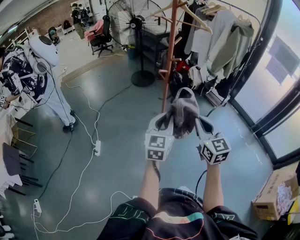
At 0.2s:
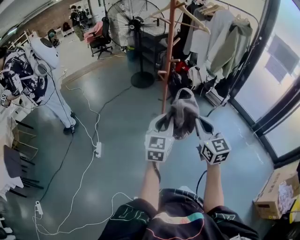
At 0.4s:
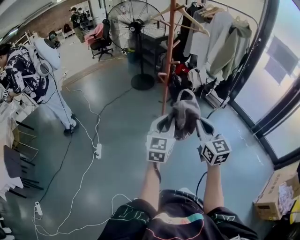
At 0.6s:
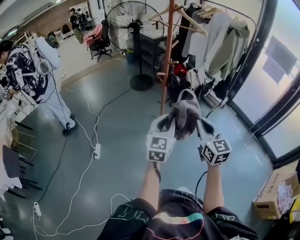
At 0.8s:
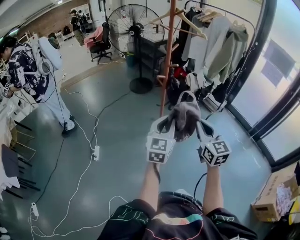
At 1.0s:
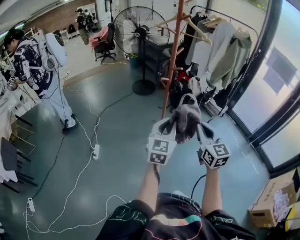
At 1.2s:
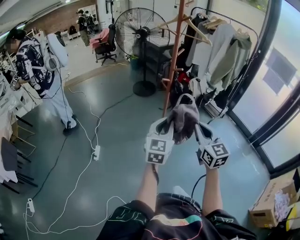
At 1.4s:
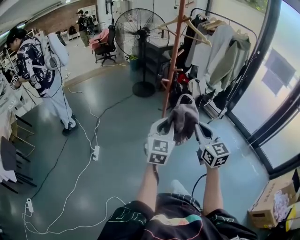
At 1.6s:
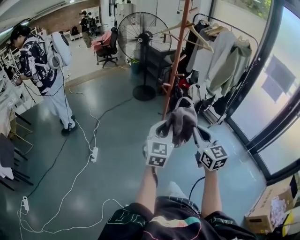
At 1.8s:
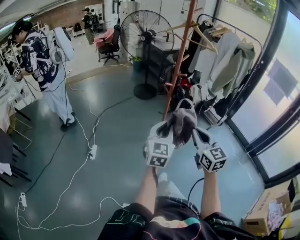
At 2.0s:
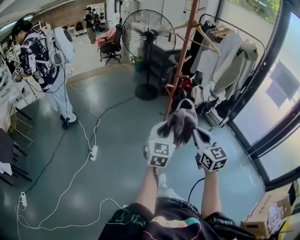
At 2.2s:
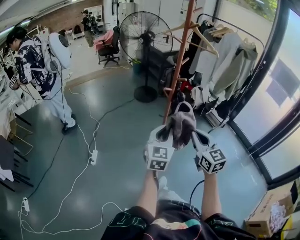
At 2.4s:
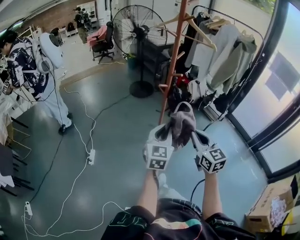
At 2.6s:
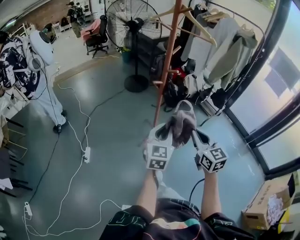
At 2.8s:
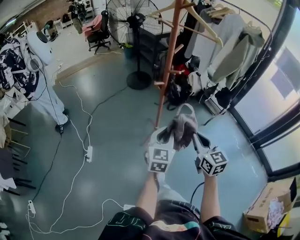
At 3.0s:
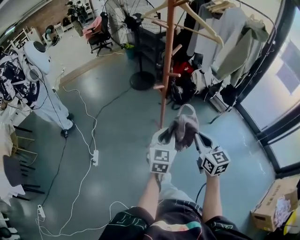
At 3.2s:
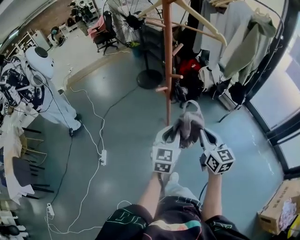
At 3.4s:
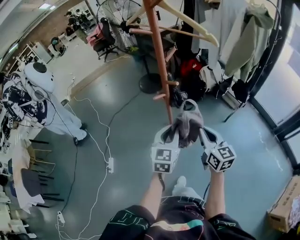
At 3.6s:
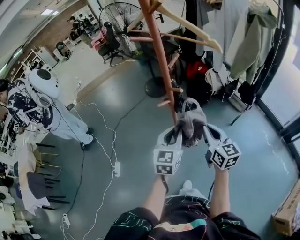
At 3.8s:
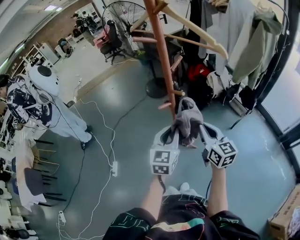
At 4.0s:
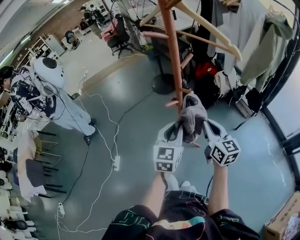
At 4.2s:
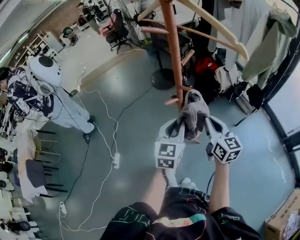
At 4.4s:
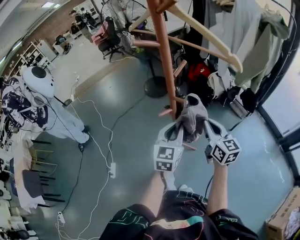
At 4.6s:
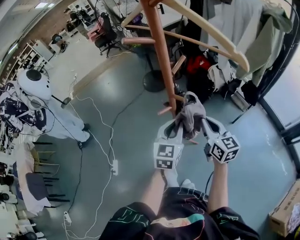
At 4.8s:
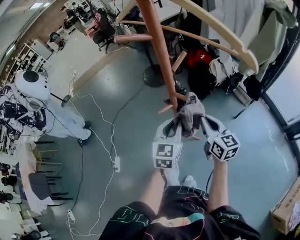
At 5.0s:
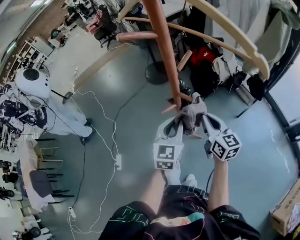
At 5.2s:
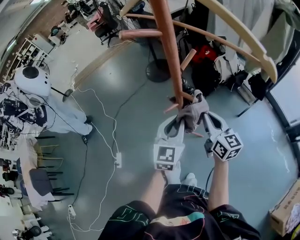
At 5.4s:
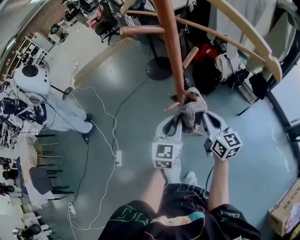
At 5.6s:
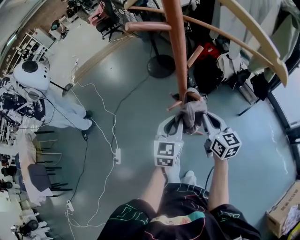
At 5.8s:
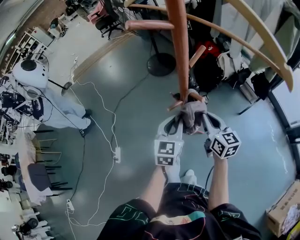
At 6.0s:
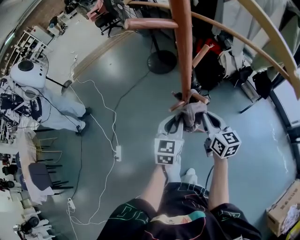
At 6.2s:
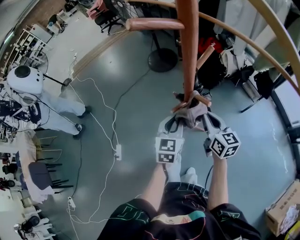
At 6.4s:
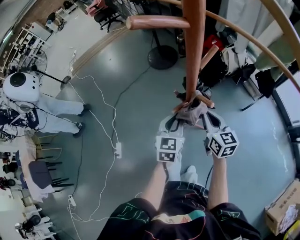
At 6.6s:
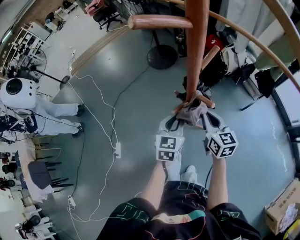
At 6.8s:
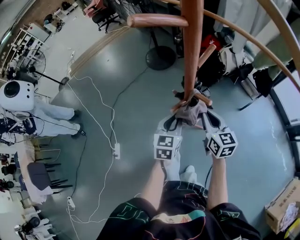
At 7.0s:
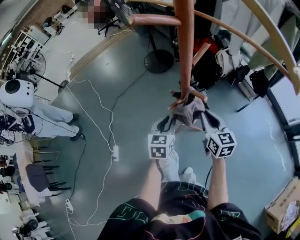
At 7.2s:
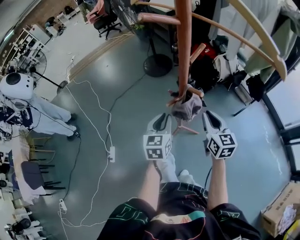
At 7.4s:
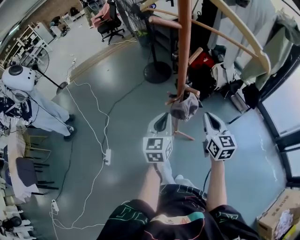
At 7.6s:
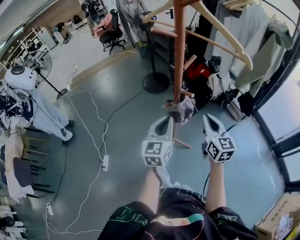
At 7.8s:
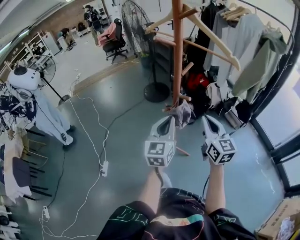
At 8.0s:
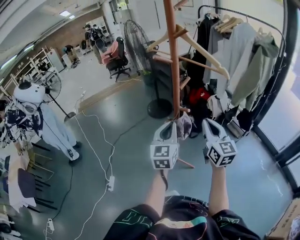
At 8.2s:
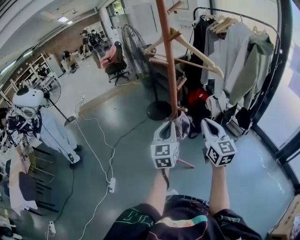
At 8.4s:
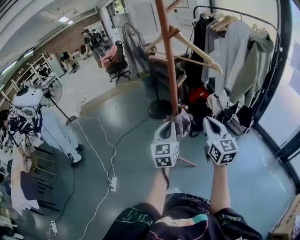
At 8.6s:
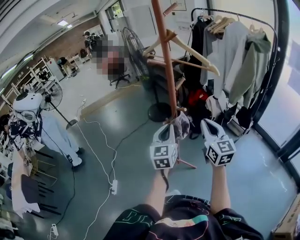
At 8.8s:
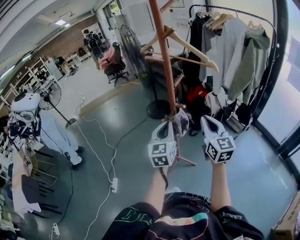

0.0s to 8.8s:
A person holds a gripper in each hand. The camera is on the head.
0.0s to 1.4s: The grippers move only a little.
1.4s to 3.0s: Both grippers move forward and downward, about 20 cm.
3.0s to 4.4s: Both grippers move forward, about 20 cm.
4.4s to 5.8s: Both grippers travel together downward and to the left, about 10 cm.
5.8s to 7.4s: The right gripper shifts by roughly 5 cm; the left gripper ends up approximately 5 cm from where it was.
7.4s to 8.8s: The left gripper moves upward, about 10 cm. Meanwhile the right gripper moves upward and backward, roughly 15 cm.

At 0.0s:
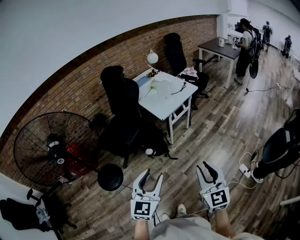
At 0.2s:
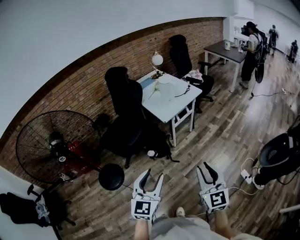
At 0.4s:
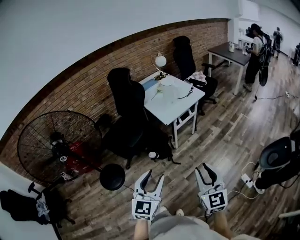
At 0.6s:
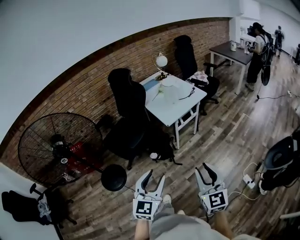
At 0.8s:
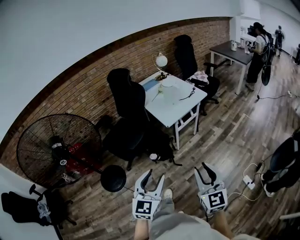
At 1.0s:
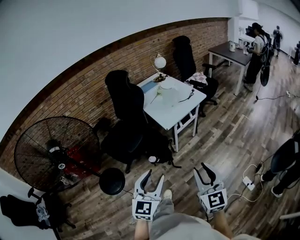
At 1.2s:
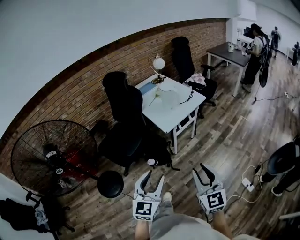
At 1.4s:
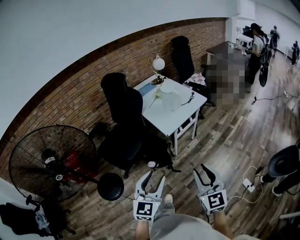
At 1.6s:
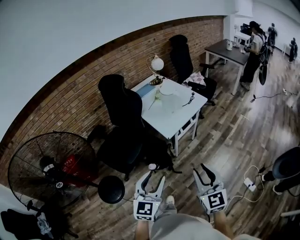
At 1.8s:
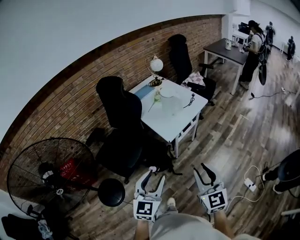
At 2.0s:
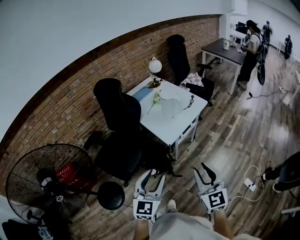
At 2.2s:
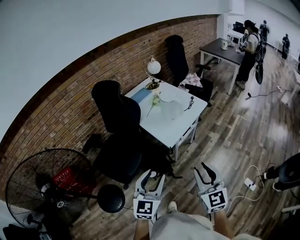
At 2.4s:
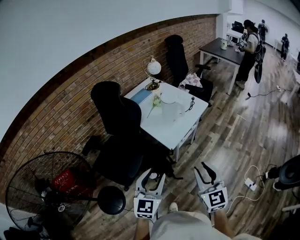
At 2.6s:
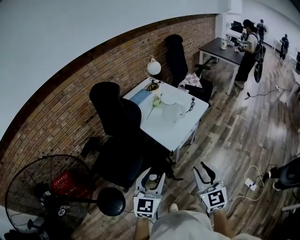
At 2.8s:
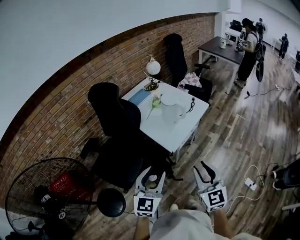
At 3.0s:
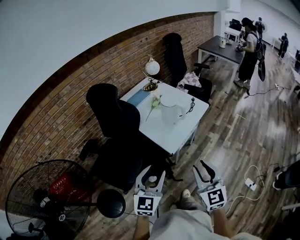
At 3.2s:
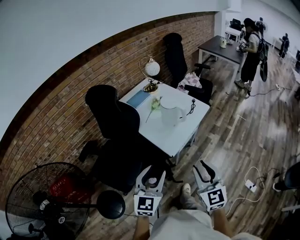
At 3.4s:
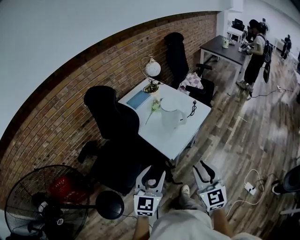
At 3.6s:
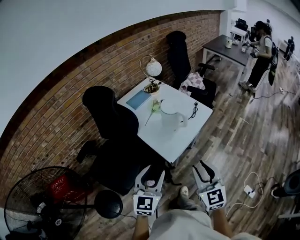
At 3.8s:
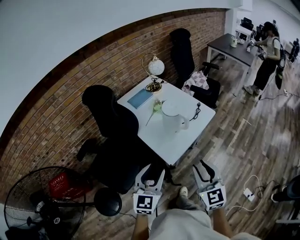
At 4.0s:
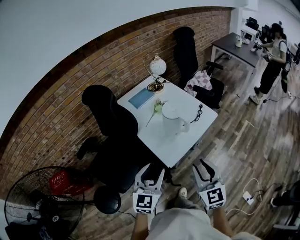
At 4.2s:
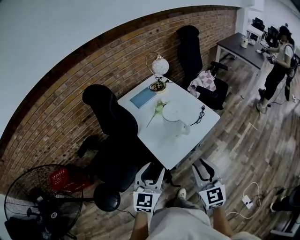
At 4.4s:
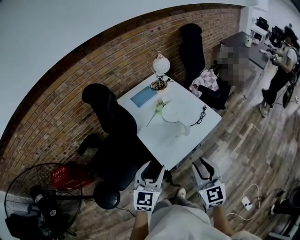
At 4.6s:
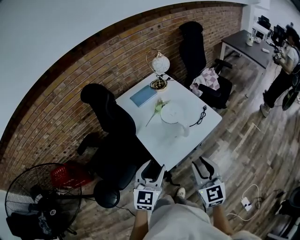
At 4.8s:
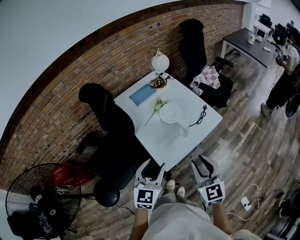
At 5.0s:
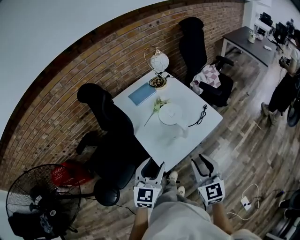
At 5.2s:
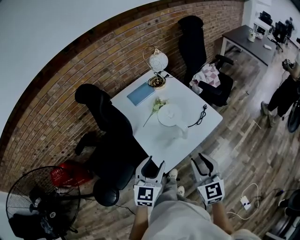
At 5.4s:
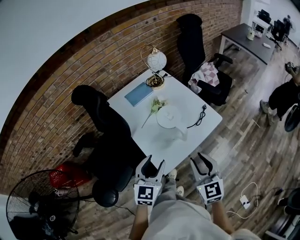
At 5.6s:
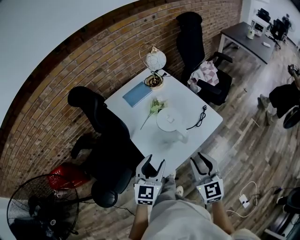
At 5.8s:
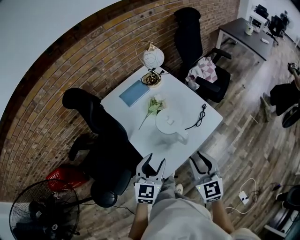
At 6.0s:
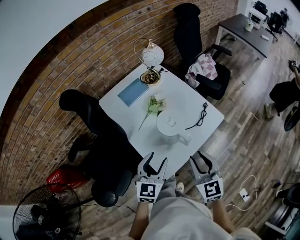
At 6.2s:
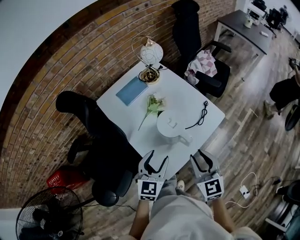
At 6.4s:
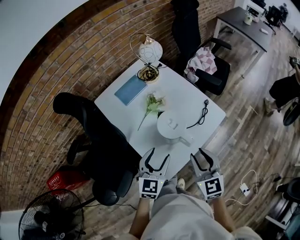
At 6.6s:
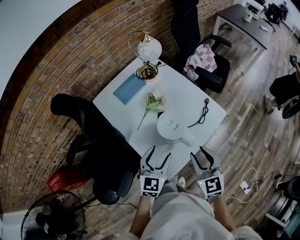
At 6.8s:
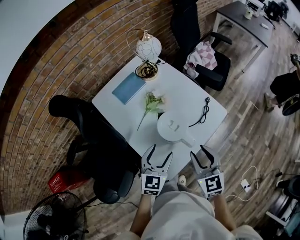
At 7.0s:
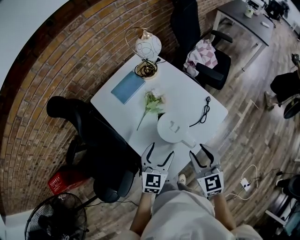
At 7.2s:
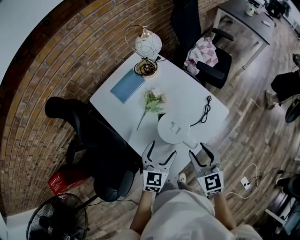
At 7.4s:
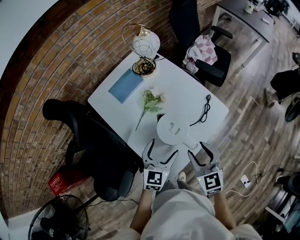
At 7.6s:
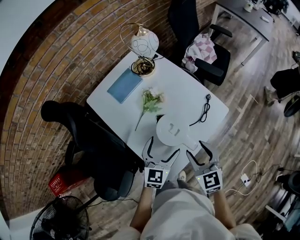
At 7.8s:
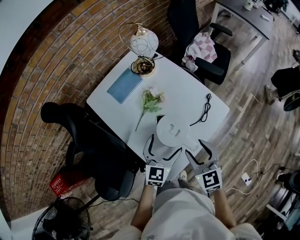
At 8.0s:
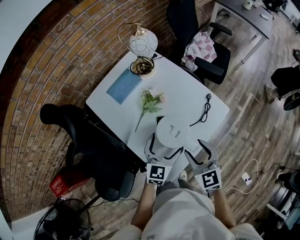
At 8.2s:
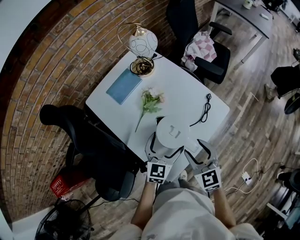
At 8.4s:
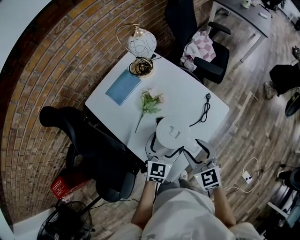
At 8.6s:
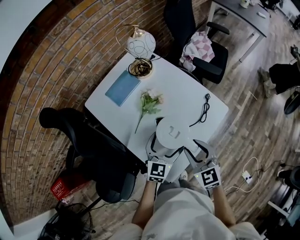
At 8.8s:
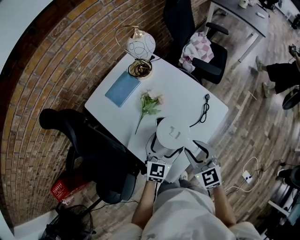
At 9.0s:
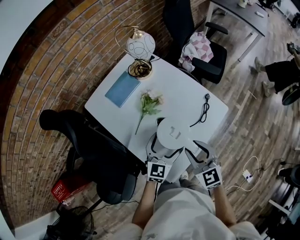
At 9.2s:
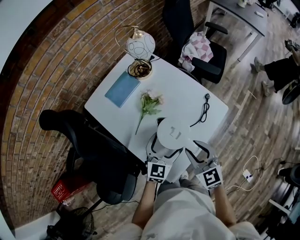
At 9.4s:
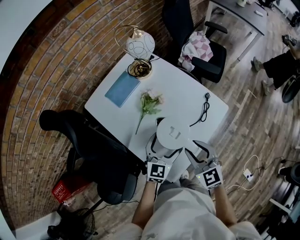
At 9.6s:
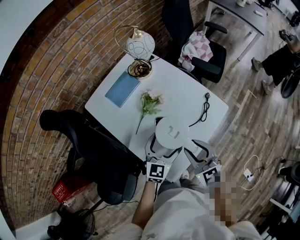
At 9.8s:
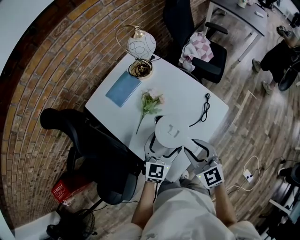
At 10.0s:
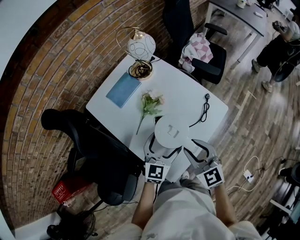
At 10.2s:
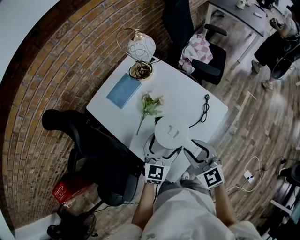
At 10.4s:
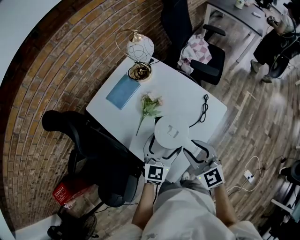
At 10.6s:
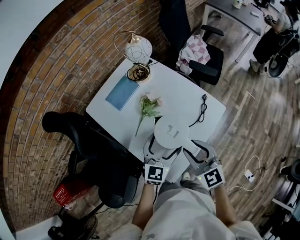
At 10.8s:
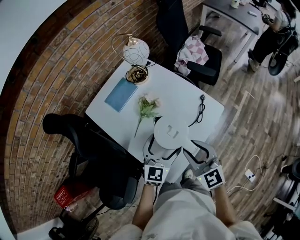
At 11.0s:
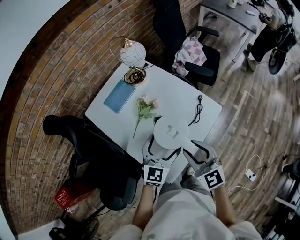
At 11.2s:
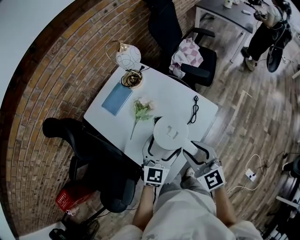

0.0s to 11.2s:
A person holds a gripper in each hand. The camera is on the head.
0.0s to 1.6s: Both grippers travel together forward, approximately 20 cm.
1.6s to 3.2s: The two grippers go approximately 20 cm forward.
3.2s to 4.8s: Both grippers travel together forward and to the right, roughly 20 cm.
4.8s to 6.4s: Both grippers move forward and downward, some 20 cm.
6.4s to 8.0s: Both grippers move forward and downward, roughly 10 cm. The left gripper opens its fingers, while the right gripper opens up.
8.0s to 9.6s: The grippers make only small movements.
9.6s to 11.2s: Both grippers move upward, roughly 5 cm.

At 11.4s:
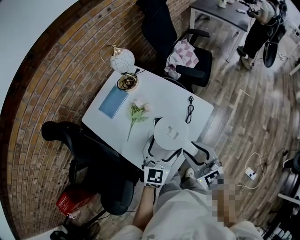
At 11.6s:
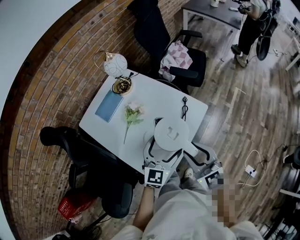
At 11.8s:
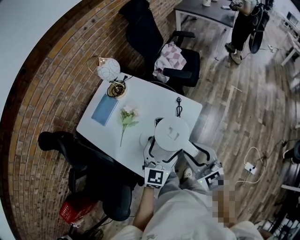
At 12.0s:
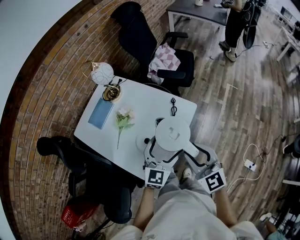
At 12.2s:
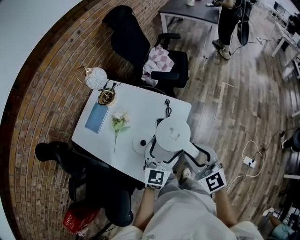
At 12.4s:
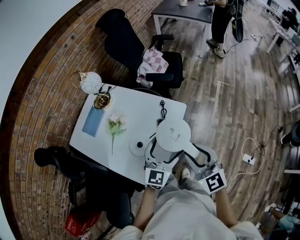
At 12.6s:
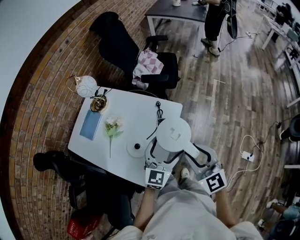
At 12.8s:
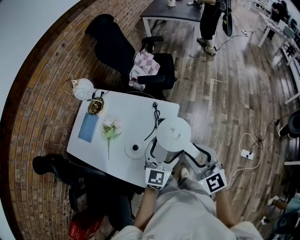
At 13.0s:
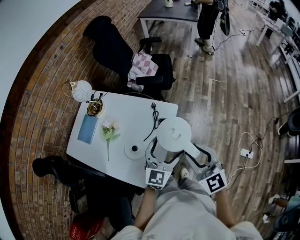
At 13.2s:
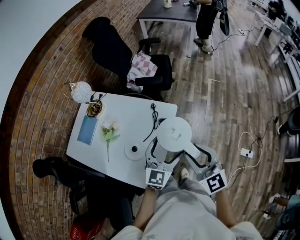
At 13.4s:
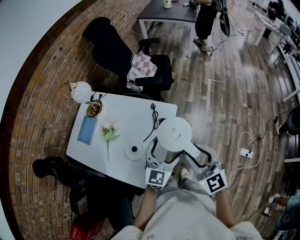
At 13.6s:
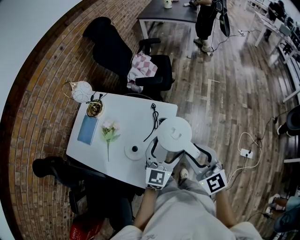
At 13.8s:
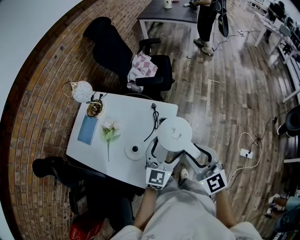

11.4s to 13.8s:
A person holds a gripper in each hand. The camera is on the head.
11.4s to 12.6s: The right gripper moves to the right and upward, some 15 cm, and swivels approximately 30 degrees; the left gripper heads to the right, covering roughly 15 cm.
12.6s to 13.8s: The right gripper turns by some 20 degrees.

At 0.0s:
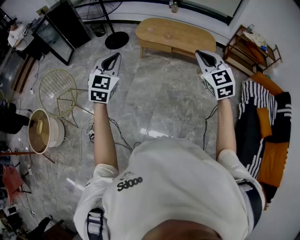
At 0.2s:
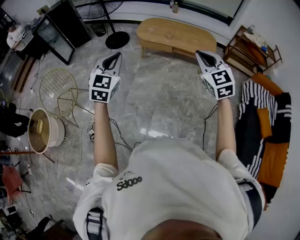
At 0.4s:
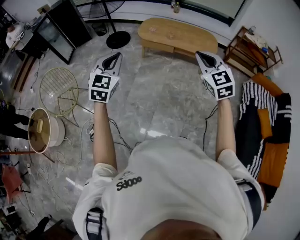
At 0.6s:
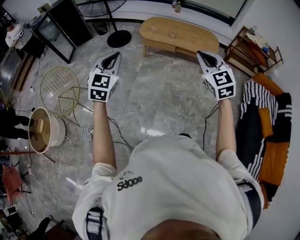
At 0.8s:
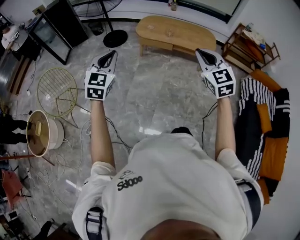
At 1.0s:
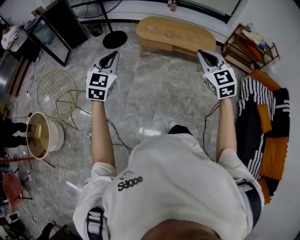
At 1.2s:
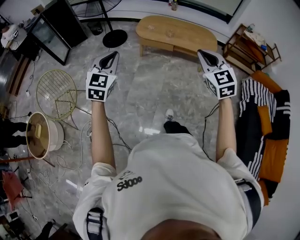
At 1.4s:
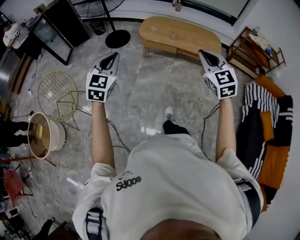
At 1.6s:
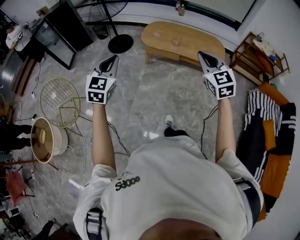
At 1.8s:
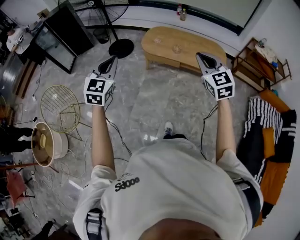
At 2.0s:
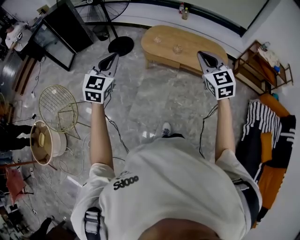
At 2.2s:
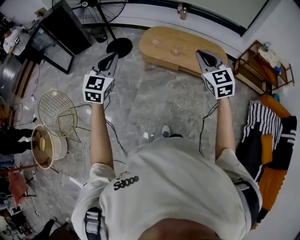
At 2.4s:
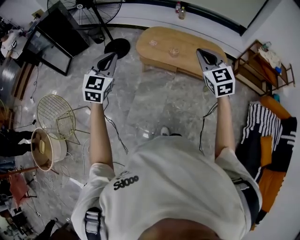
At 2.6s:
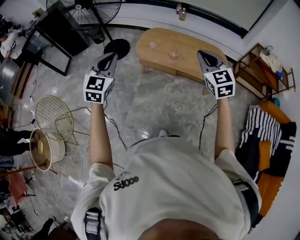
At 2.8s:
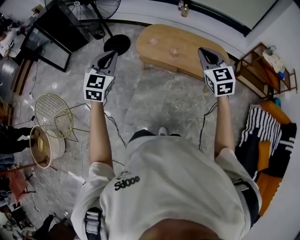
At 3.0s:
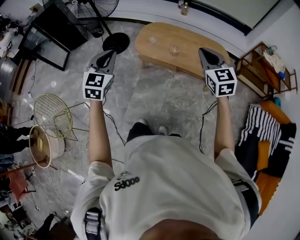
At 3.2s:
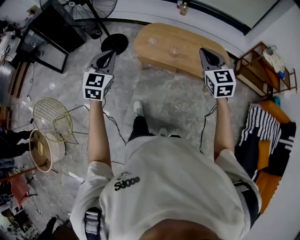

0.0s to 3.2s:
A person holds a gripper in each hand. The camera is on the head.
0.0s to 1.6s: The left gripper is displaced forward and to the left by approximately 15 cm, while the right gripper heads forward, covering roughly 15 cm.
1.6s to 3.2s: The grippers both shift forward by about 30 cm.
